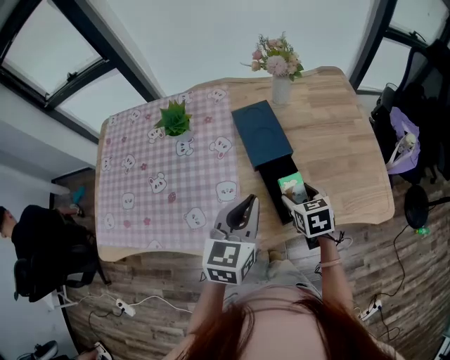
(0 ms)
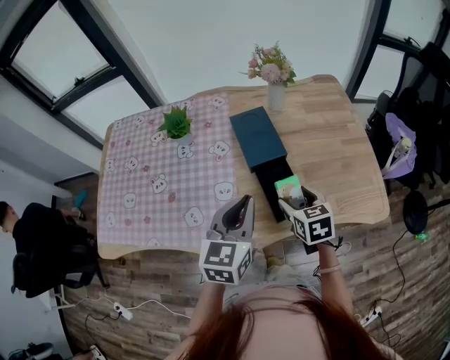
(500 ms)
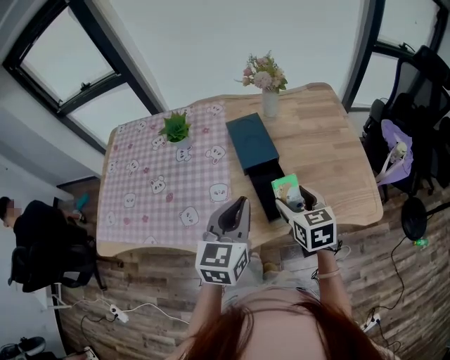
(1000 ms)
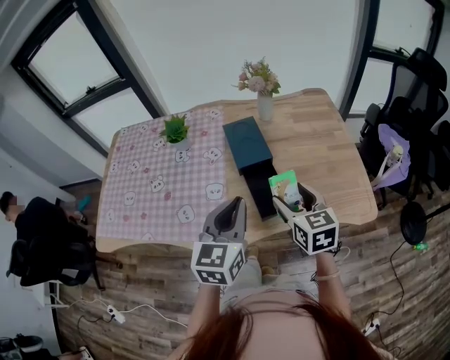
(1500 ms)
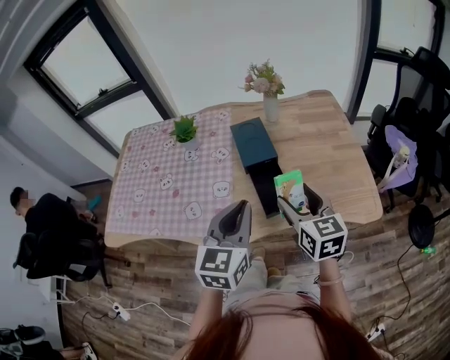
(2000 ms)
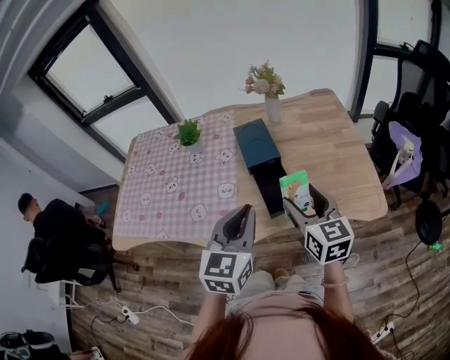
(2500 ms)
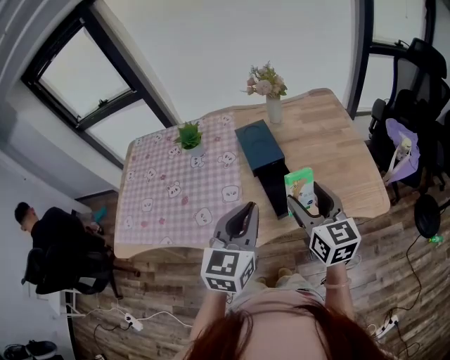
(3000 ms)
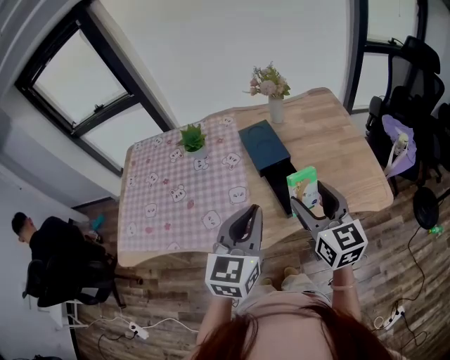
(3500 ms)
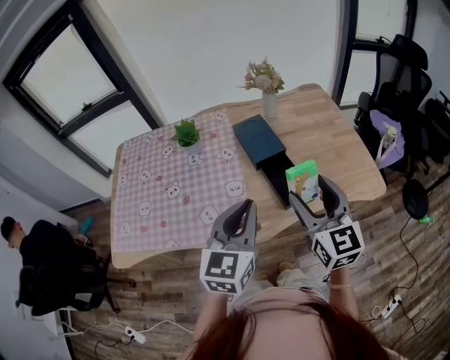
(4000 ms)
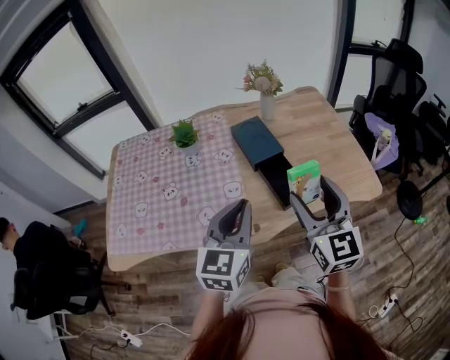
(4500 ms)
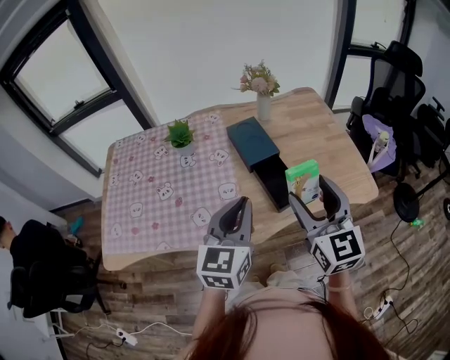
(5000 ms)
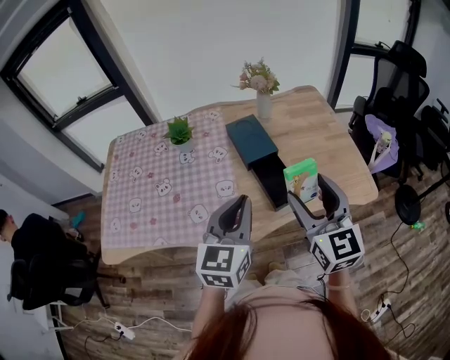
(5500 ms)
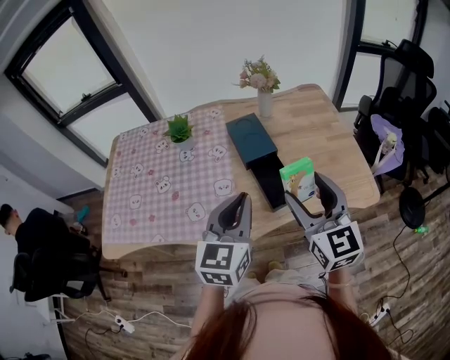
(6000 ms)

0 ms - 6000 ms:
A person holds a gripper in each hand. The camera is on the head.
0 ms - 2000 ms: The left gripper heads backward, upward and to the right, covering roughly 15 cm; the right gripper goes roughly 20 cm upward and backward, and points its fingers about 30 degrees further upward.
2000 ms - 4000 ms: The right gripper shifts roughly 10 cm upward and to the left. Meanwhile the left gripper shifts approximately 10 cm to the left.
4000 ms - 6000 ms: There are only small adjustments of the grippers.

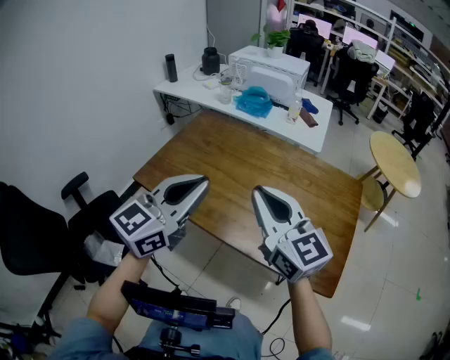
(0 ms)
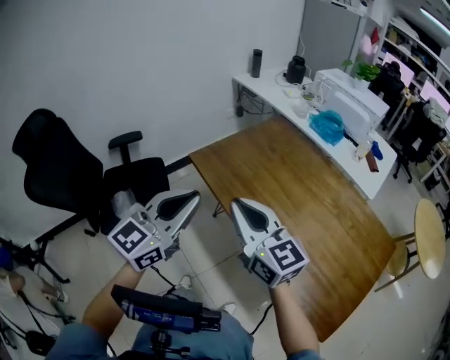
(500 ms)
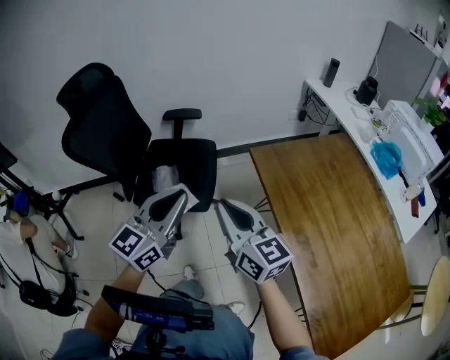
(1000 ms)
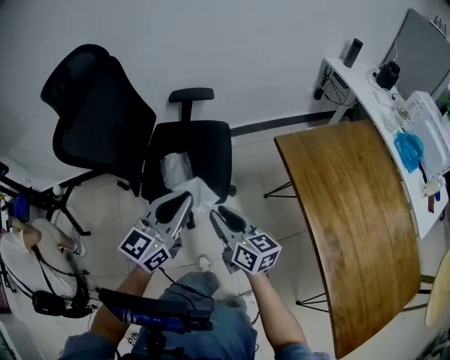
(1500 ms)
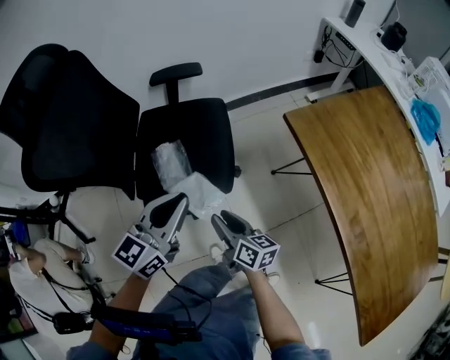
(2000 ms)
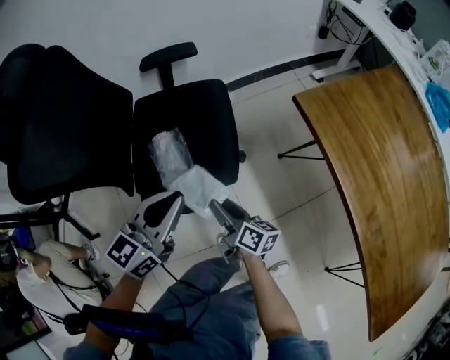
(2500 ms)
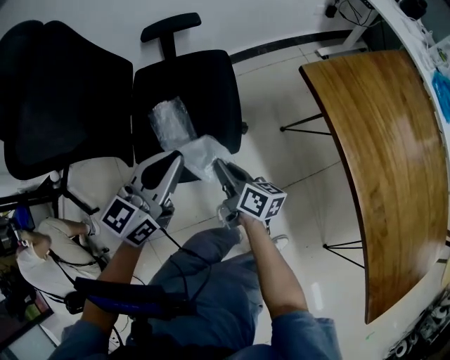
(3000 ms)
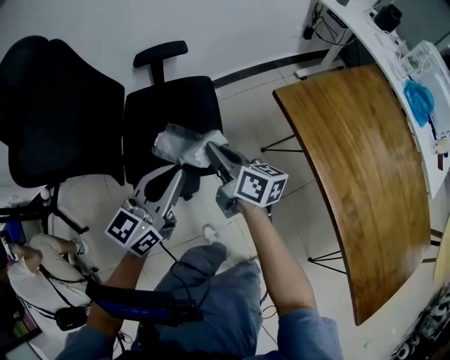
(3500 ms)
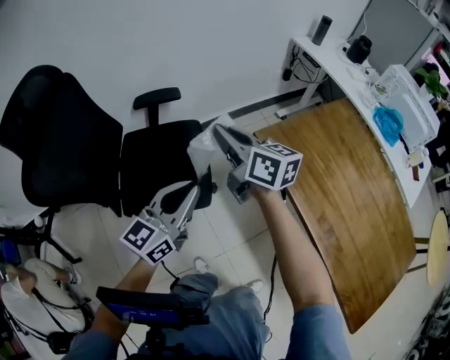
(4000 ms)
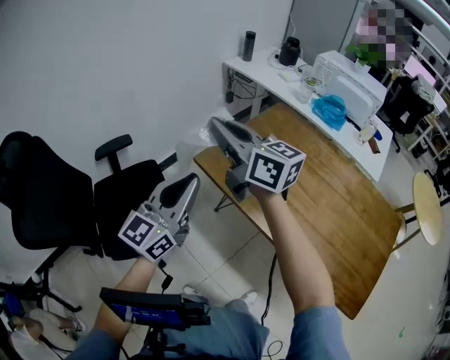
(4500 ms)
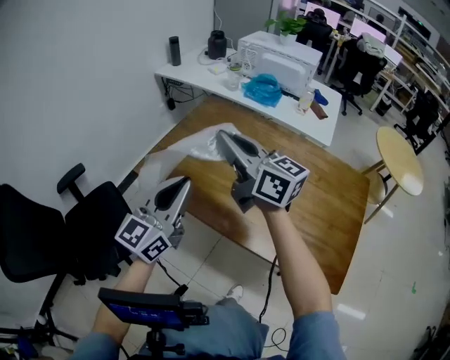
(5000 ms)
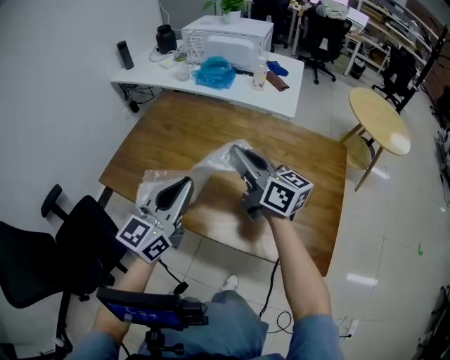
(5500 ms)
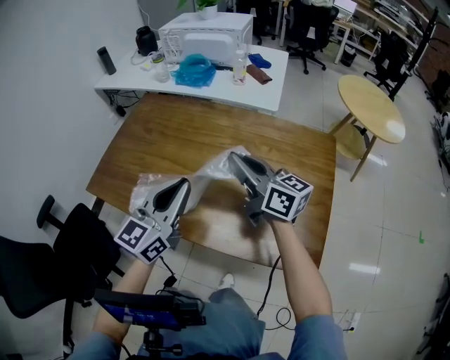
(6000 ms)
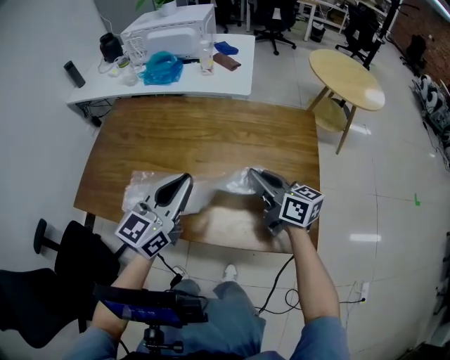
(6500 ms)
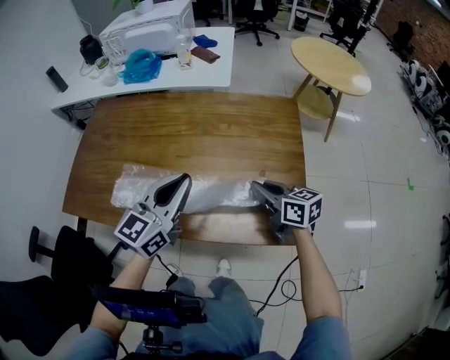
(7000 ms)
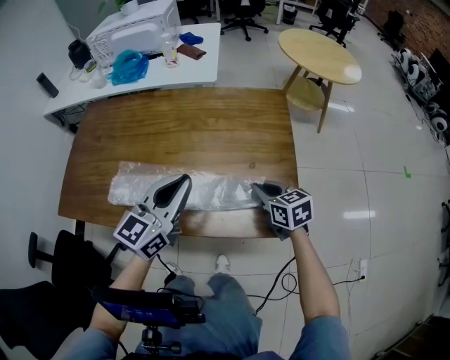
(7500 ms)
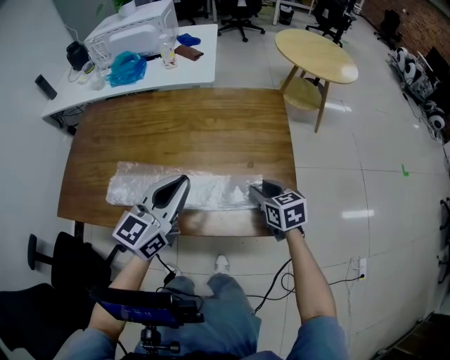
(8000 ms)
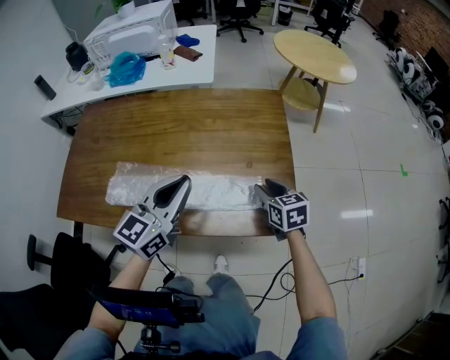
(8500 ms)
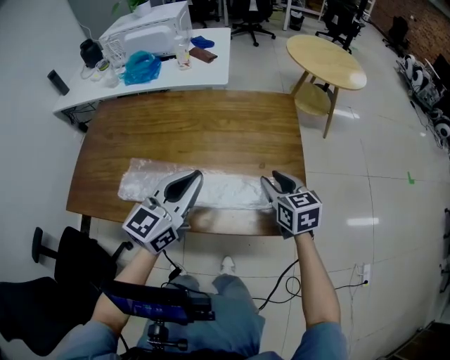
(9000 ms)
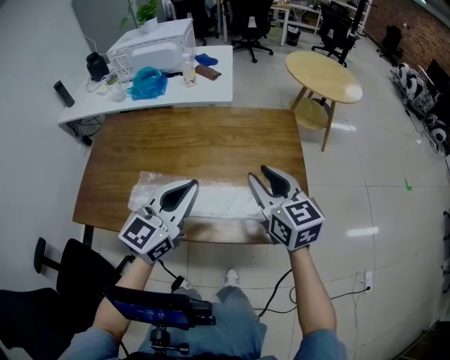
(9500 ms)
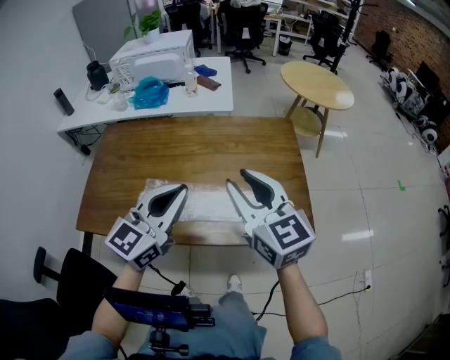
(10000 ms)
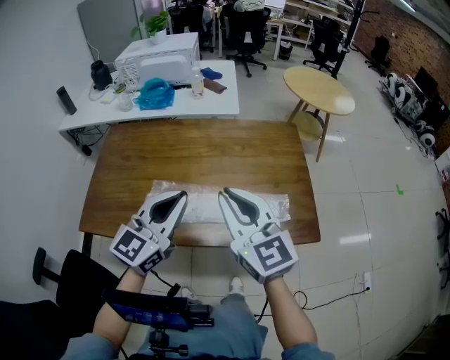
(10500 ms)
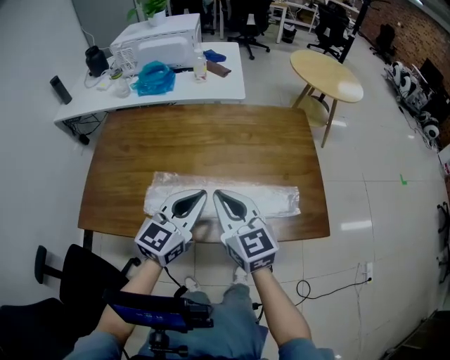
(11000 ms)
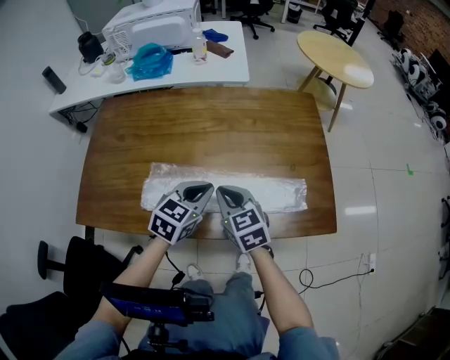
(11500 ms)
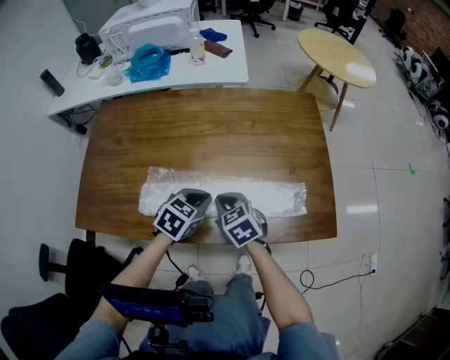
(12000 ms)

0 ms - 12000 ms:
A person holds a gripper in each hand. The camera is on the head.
0 ms - 2000 ms: Both grippers are carried about 50 cm. The left gripper swivels about 50 degrees. Meanwhile the right gripper changes its angle by approximately 70 degrees, and opens.
2000 ms - 4000 ms: The left gripper goes roughly 10 cm to the right and upward; the right gripper moves upward and forward, approximately 35 cm, turns by about 20 degrees, and closes its fingers.
4000 ms - 6000 ms: The two grippers travel together, approximately 60 cm. The right gripper changes its angle by about 40 degrees; the left gripper changes its angle by roughly 40 degrees.
6000 ms - 8000 ms: The right gripper goes roughly 30 cm to the right, downward and backward, points its fingers about 40 degrees further downward, and opens its fingers; the left gripper shifts some 15 cm to the right.
8000 ms - 10000 ms: The left gripper is displaced upward and to the left by roughly 15 cm; the right gripper is displaced upward and to the left by about 35 cm, and angles its fingers upward, by some 30 degrees.
10000 ms - 12000 ms: Both grippers travel together downward, roughly 30 cm. The left gripper tilts its fingers some 50 degrees downward. The right gripper points its fingers about 40 degrees further downward, and closes its fingers.

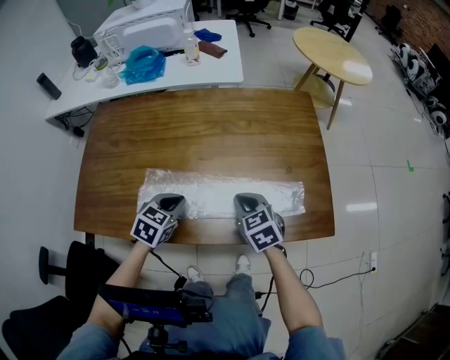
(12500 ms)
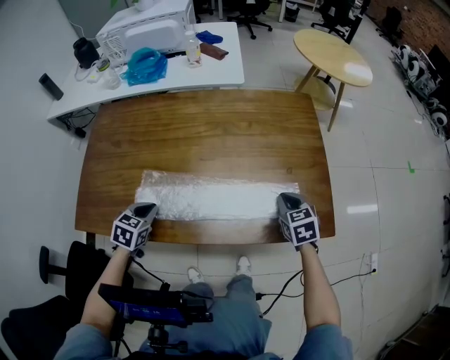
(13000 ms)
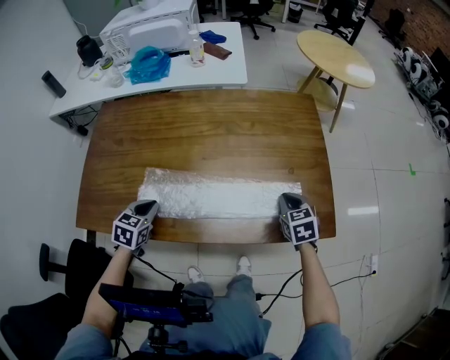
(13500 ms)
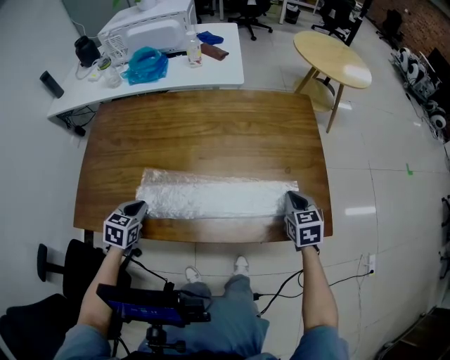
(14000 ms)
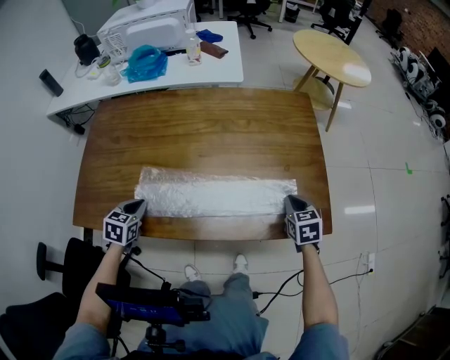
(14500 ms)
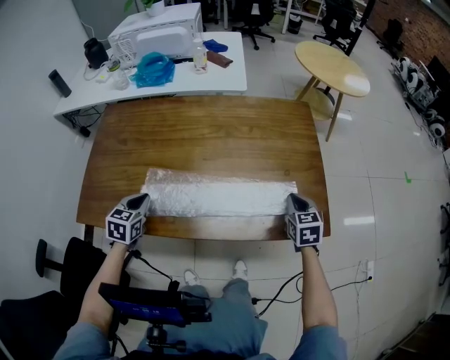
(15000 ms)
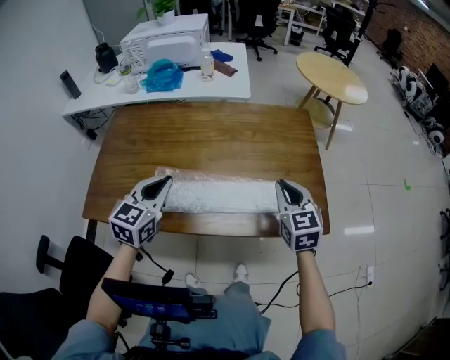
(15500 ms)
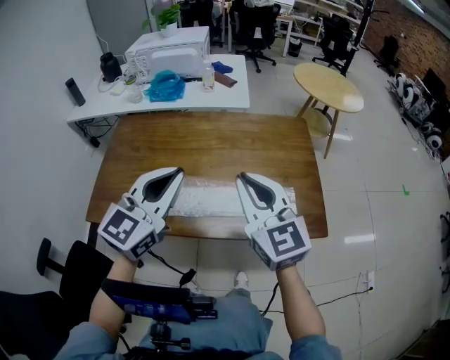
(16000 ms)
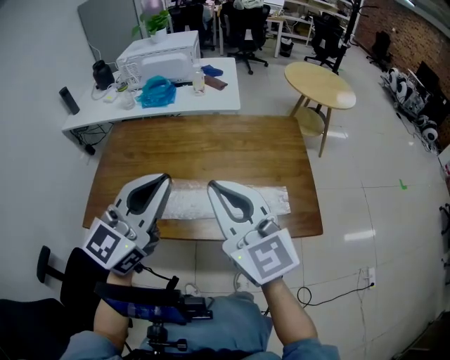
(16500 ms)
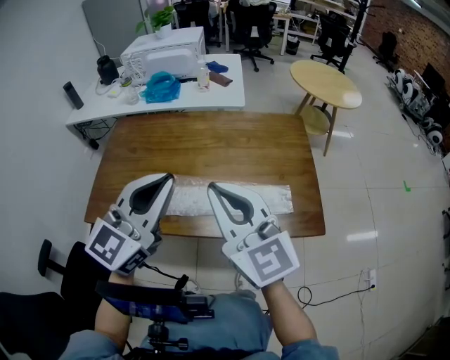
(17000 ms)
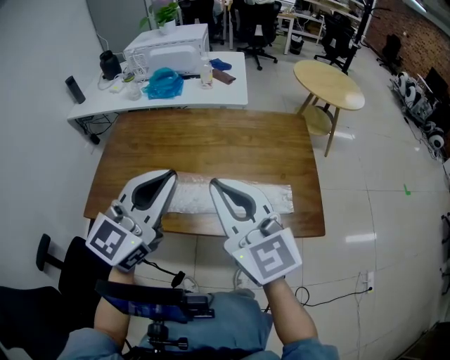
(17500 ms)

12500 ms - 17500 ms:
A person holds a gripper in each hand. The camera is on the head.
12500 ms - 15000 ms: The right gripper travels to the right by approximately 20 cm, and swivels approximately 20 degrees; the left gripper heads to the left, covering some 15 cm, and turns by some 20 degrees.
15000 ms - 17500 ms: The right gripper heads upward and to the left, covering roughly 40 cm, and points its fingers about 40 degrees further upward. The left gripper goes about 35 cm upward and to the right, and points its fingers some 50 degrees further upward.

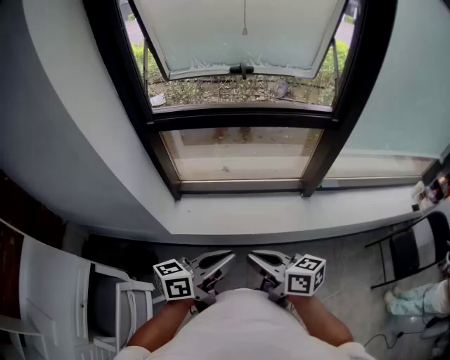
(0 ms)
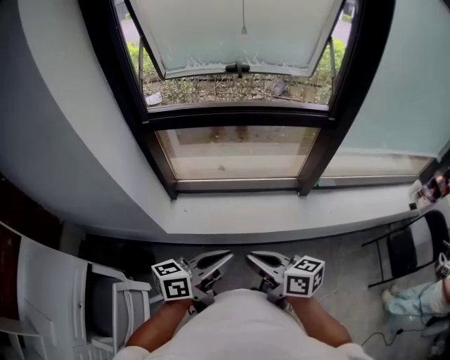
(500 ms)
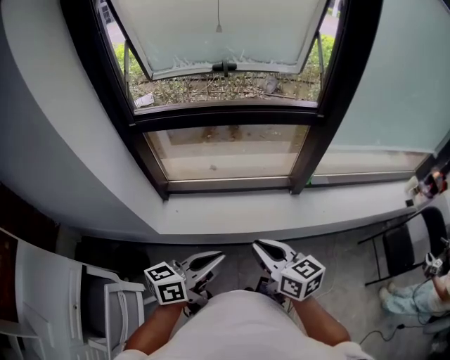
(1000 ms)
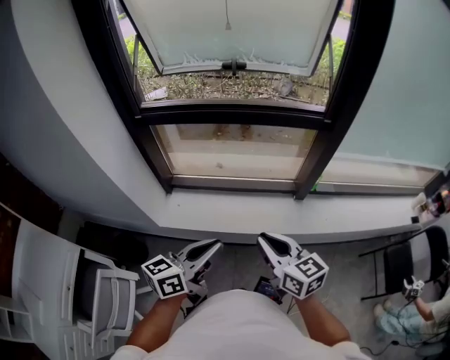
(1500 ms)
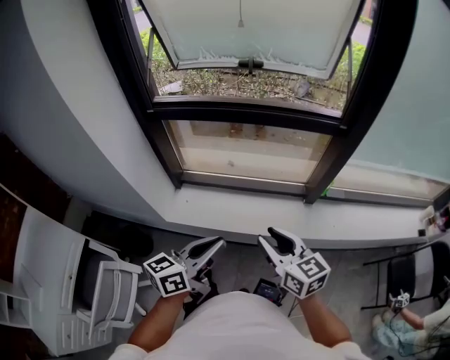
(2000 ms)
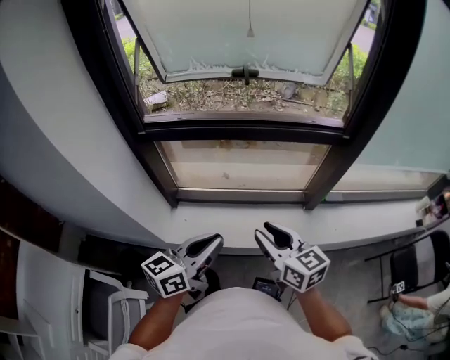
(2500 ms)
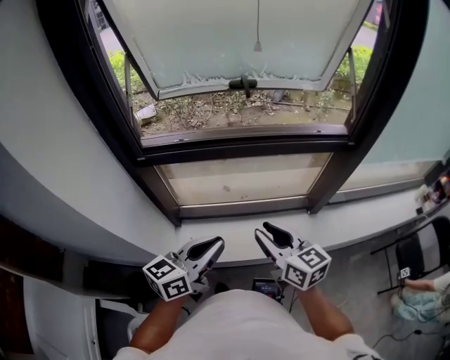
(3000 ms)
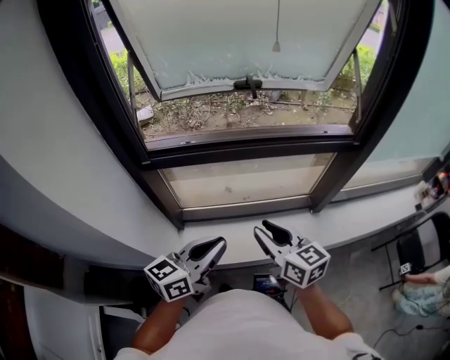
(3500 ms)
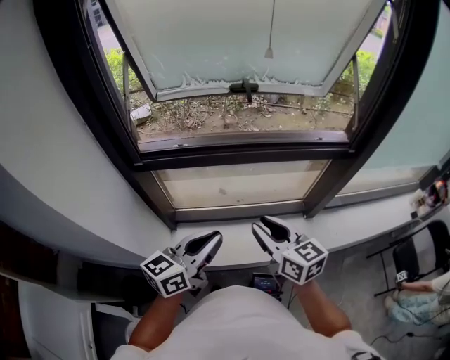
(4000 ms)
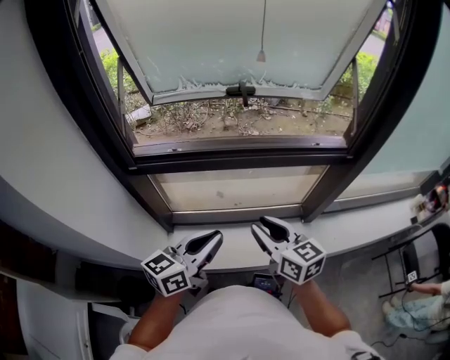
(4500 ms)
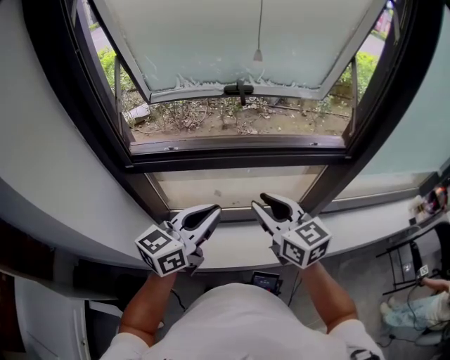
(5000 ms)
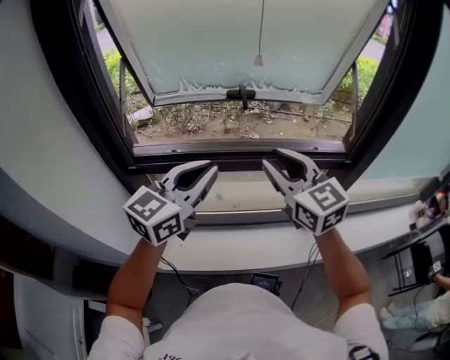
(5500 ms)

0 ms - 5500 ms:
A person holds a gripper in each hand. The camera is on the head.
0 ms - 2000 ms: The right gripper travels to the right and forward by approximately 15 cm, rotates roughly 30 degrees, and opens. Meanwhile the left gripper changes place by roughly 5 cm.
2000 ms - 3500 ms: The right gripper travels to the left and forward by roughly 25 cm, while the left gripper travels forward and to the left by some 25 cm.
3500 ms - 5500 ms: The left gripper travels forward and upward by some 20 cm, and changes its angle by approximately 30 degrees; the right gripper goes some 20 cm upward and forward, and changes its angle by approximately 30 degrees.
